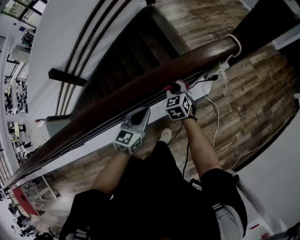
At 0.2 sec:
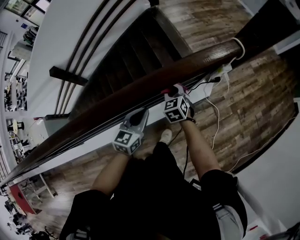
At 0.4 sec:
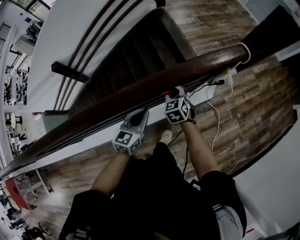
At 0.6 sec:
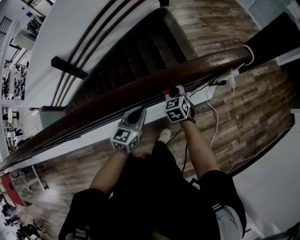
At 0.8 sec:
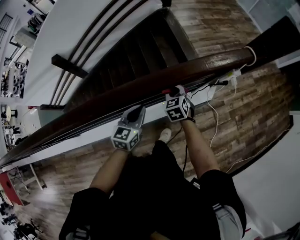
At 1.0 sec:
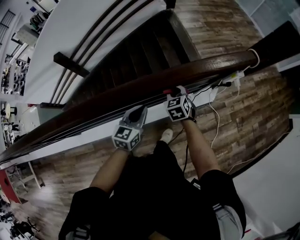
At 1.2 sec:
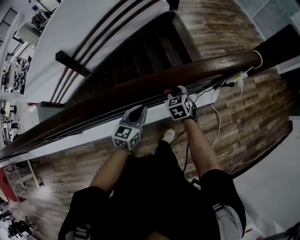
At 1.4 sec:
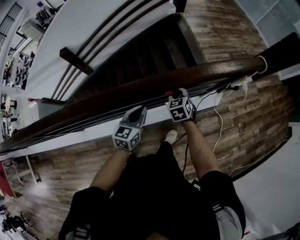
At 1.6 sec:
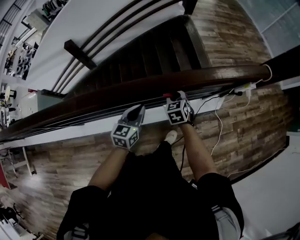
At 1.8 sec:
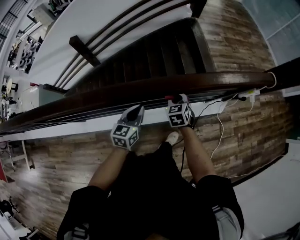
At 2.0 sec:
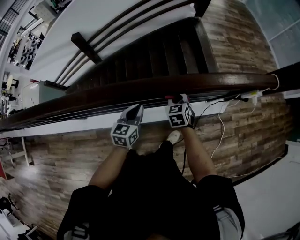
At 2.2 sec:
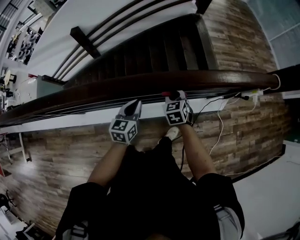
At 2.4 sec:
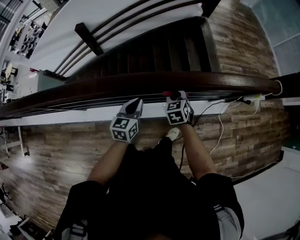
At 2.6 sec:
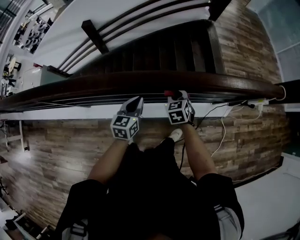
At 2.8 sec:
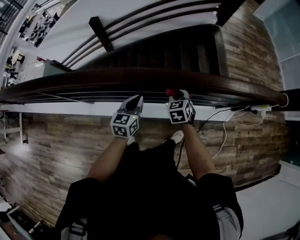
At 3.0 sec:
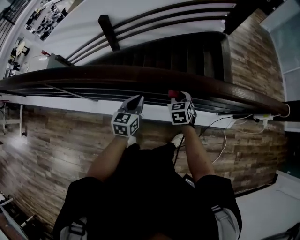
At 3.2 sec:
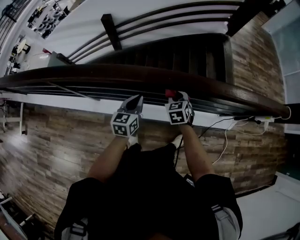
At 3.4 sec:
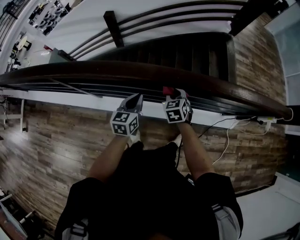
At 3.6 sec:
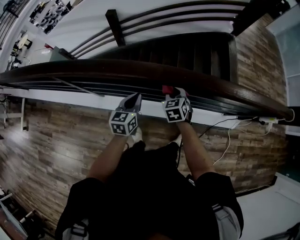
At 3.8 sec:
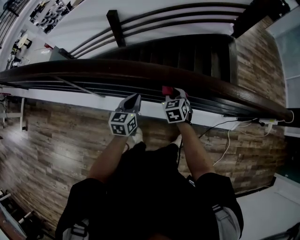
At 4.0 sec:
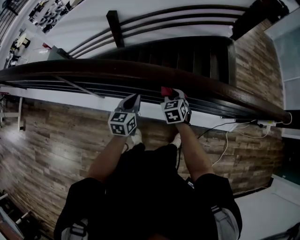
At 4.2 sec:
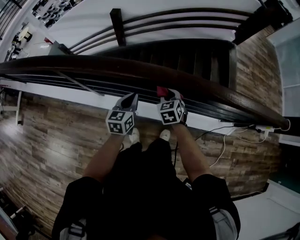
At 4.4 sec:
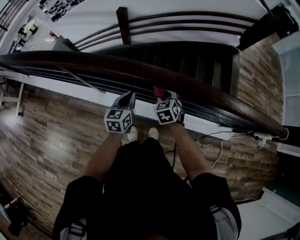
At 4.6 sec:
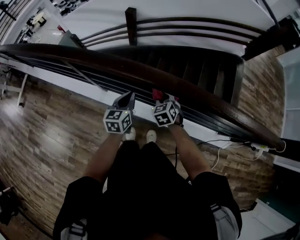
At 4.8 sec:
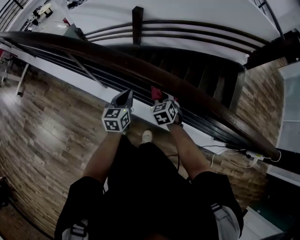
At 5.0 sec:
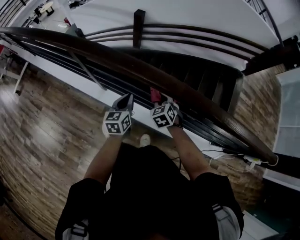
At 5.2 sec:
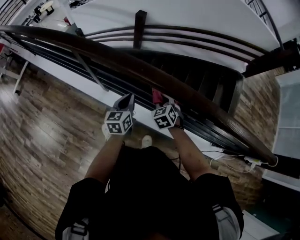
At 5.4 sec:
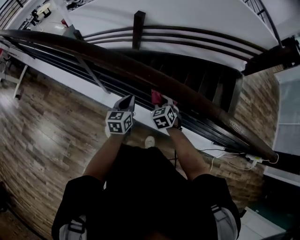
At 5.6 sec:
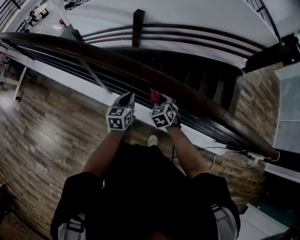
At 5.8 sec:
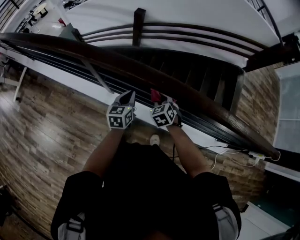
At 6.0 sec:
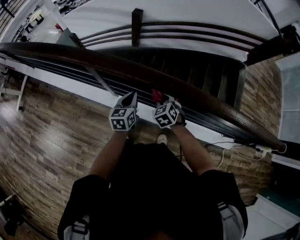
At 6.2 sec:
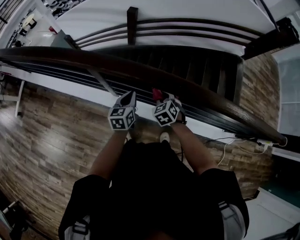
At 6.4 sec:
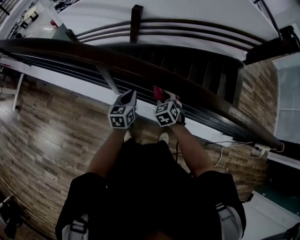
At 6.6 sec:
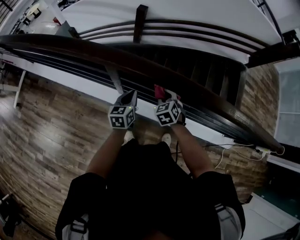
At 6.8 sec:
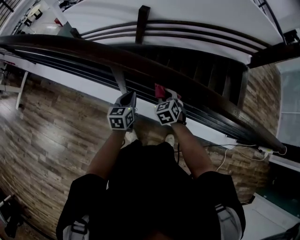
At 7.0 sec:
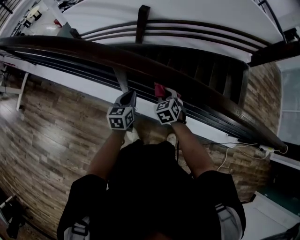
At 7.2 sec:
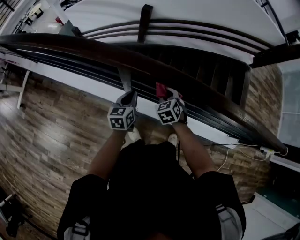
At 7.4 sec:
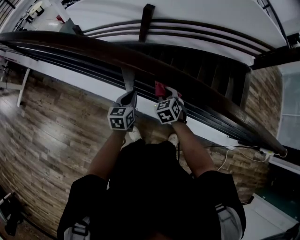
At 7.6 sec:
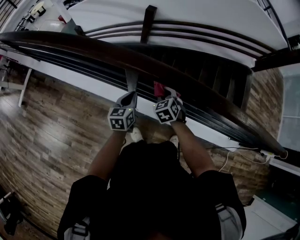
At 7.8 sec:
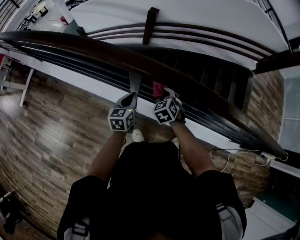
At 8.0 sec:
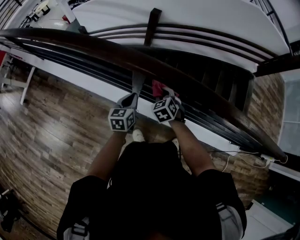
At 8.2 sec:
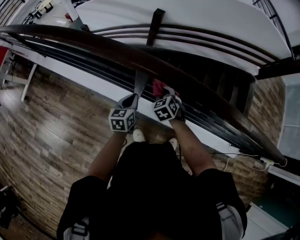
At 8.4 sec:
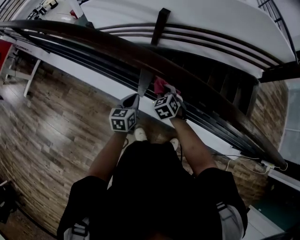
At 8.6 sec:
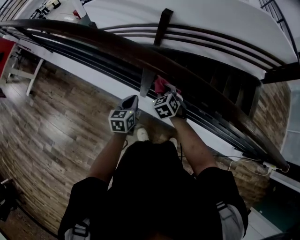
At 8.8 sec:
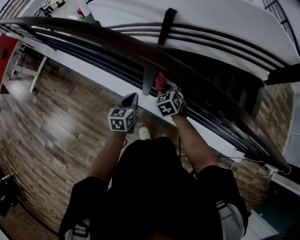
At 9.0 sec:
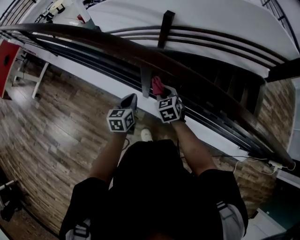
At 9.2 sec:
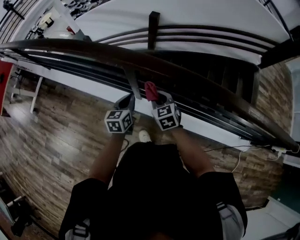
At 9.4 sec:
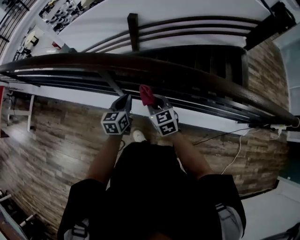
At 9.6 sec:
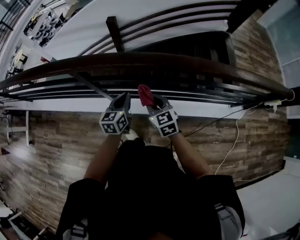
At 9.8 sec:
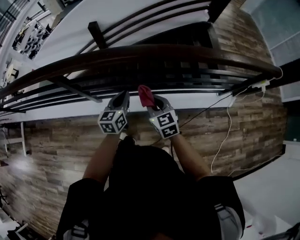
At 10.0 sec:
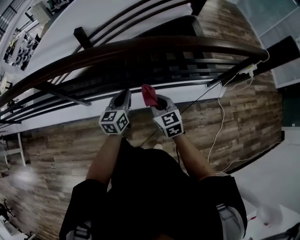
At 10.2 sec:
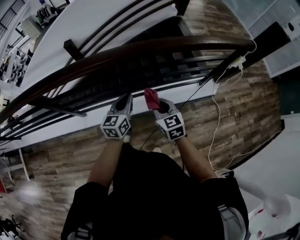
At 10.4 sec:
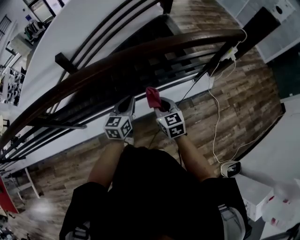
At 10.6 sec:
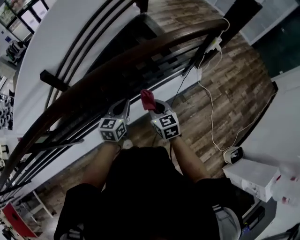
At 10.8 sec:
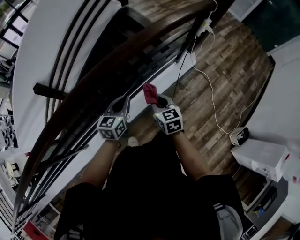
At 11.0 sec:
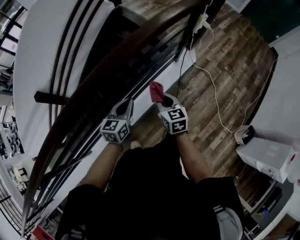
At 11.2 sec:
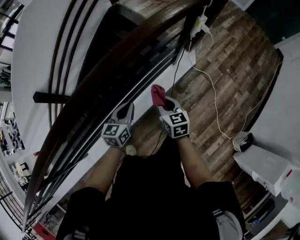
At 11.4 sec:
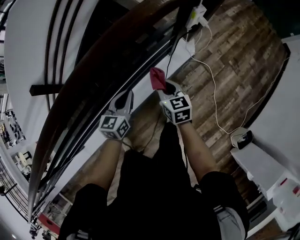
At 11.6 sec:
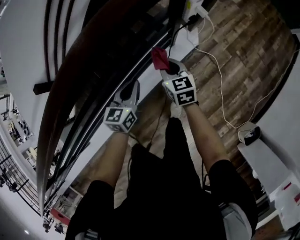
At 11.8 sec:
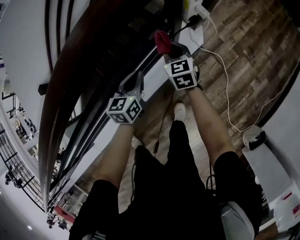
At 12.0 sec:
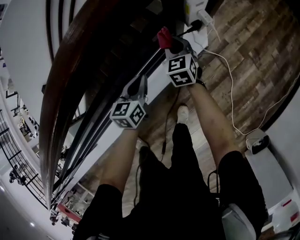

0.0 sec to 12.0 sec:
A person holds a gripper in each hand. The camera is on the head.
0.0 sec to 1.6 sec: The right gripper moves to the left and backward, approximately 20 cm; the left gripper shifts about 20 cm to the left.
1.6 sec to 3.0 sec: The two grippers go roughly 15 cm to the left.
3.0 sec to 4.4 sec: The two grippers go some 15 cm to the left.
4.4 sec to 6.0 sec: Both grippers move to the left, about 15 cm.
6.0 sec to 7.6 sec: Both grippers move to the left, roughly 15 cm.
7.6 sec to 9.0 sec: The grippers both shift to the left by about 10 cm.
9.0 sec to 10.4 sec: The pair of grippers is taken roughly 50 cm. The left gripper changes its angle by approximately 50 degrees, while the right gripper turns by roughly 50 degrees.
10.4 sec to 12.0 sec: The left gripper moves to the right, forward and downward, about 40 cm, and rotates approximately 20 degrees. The right gripper is displaced forward, to the right and downward by approximately 50 cm, and rotates roughly 30 degrees.

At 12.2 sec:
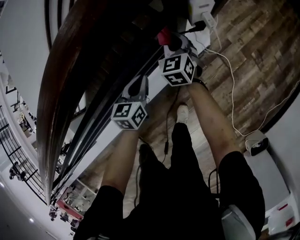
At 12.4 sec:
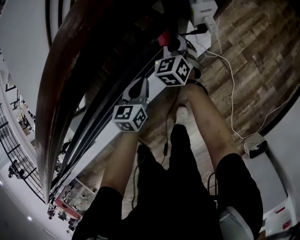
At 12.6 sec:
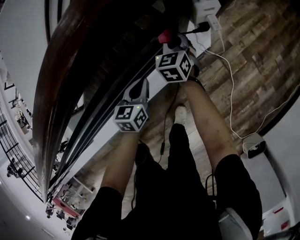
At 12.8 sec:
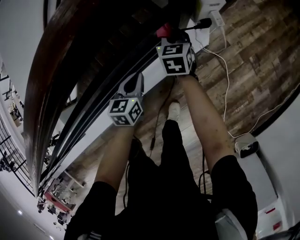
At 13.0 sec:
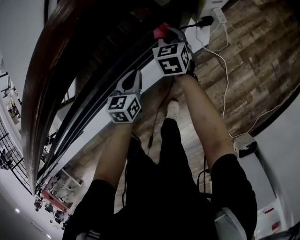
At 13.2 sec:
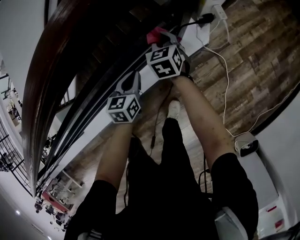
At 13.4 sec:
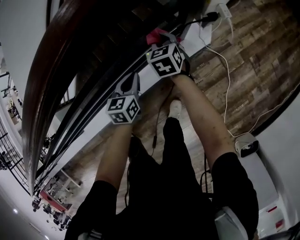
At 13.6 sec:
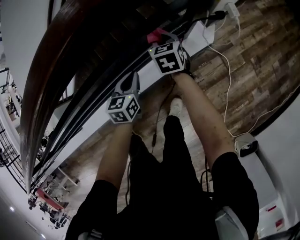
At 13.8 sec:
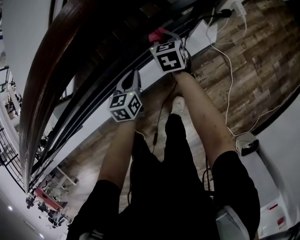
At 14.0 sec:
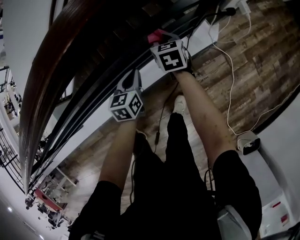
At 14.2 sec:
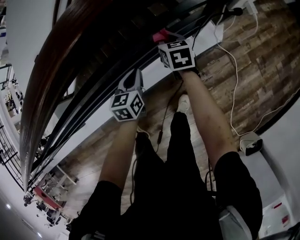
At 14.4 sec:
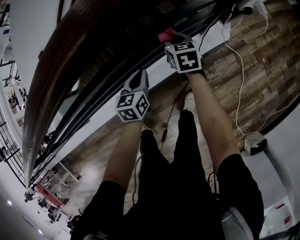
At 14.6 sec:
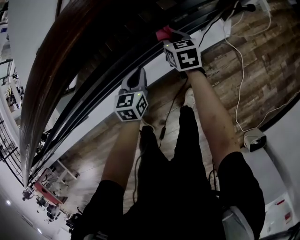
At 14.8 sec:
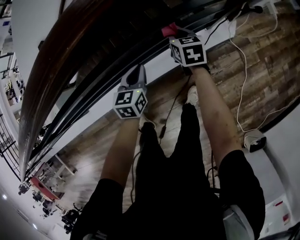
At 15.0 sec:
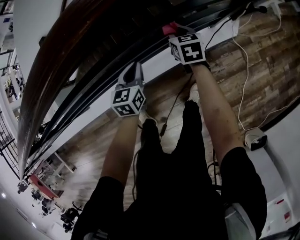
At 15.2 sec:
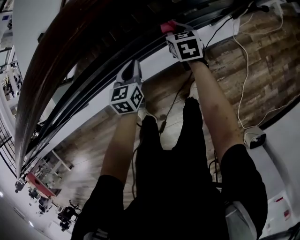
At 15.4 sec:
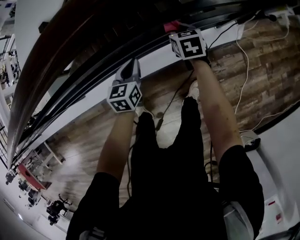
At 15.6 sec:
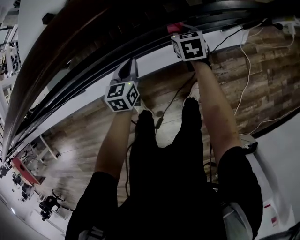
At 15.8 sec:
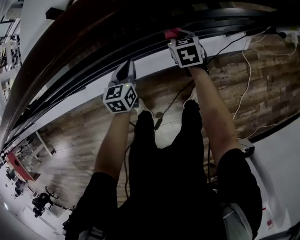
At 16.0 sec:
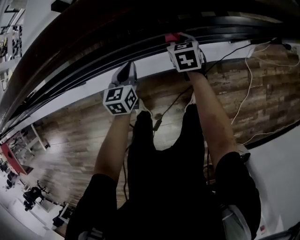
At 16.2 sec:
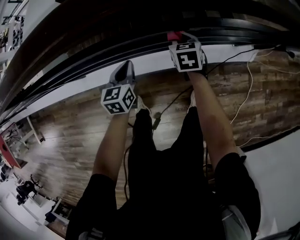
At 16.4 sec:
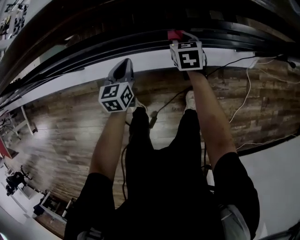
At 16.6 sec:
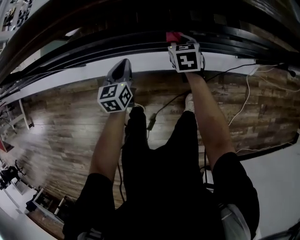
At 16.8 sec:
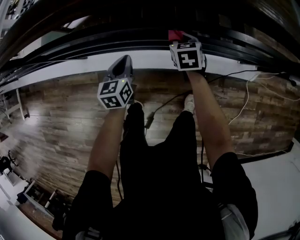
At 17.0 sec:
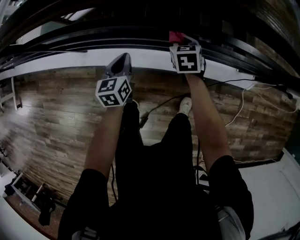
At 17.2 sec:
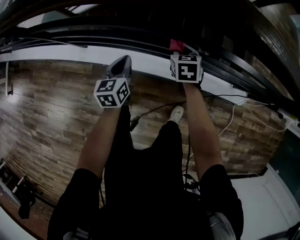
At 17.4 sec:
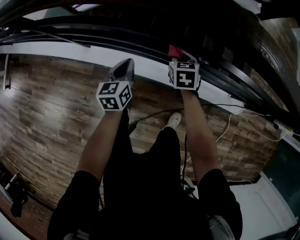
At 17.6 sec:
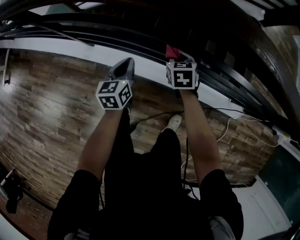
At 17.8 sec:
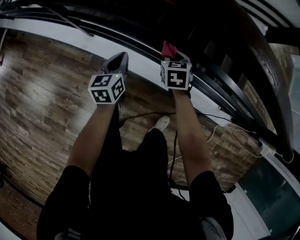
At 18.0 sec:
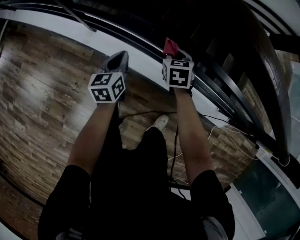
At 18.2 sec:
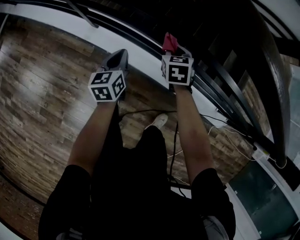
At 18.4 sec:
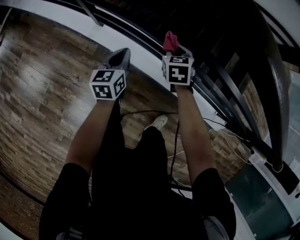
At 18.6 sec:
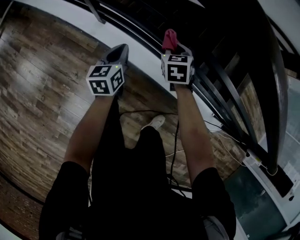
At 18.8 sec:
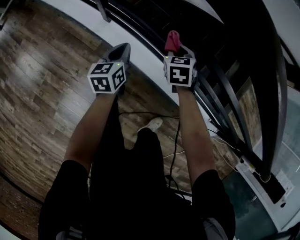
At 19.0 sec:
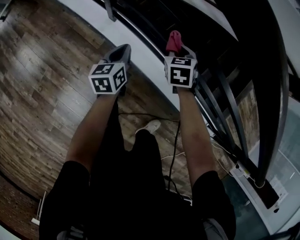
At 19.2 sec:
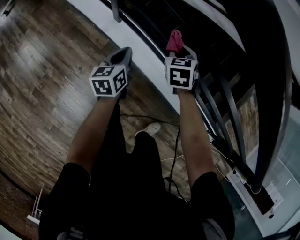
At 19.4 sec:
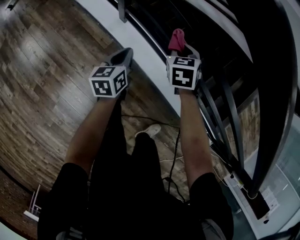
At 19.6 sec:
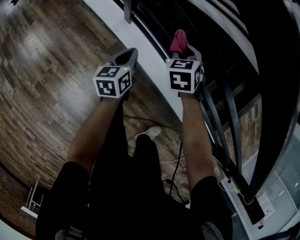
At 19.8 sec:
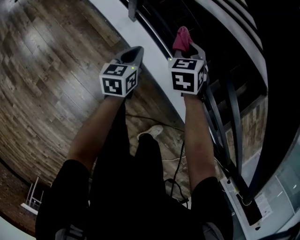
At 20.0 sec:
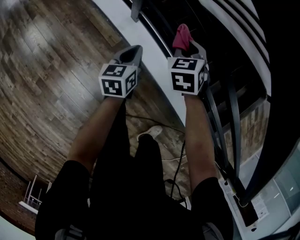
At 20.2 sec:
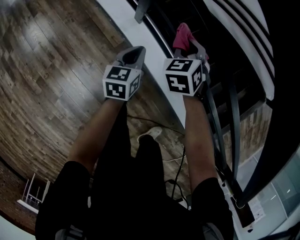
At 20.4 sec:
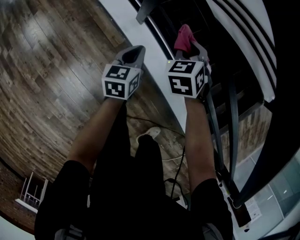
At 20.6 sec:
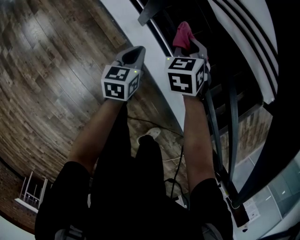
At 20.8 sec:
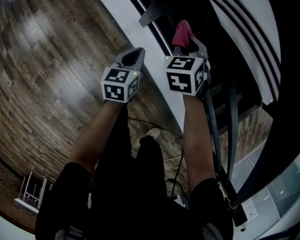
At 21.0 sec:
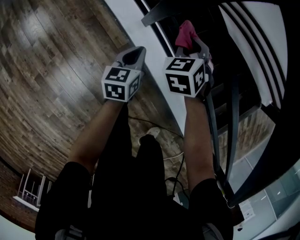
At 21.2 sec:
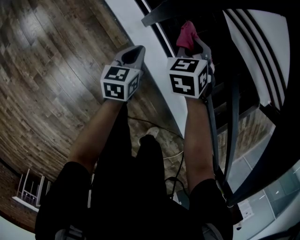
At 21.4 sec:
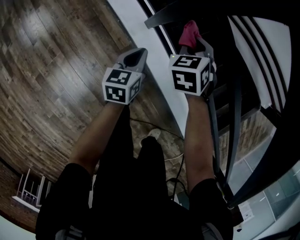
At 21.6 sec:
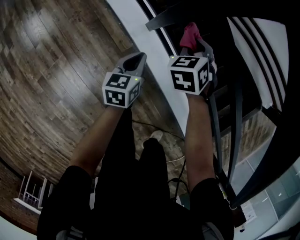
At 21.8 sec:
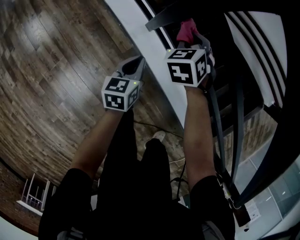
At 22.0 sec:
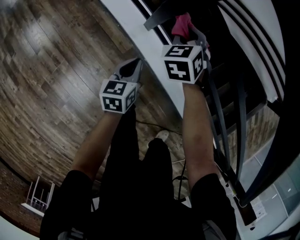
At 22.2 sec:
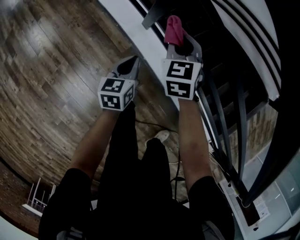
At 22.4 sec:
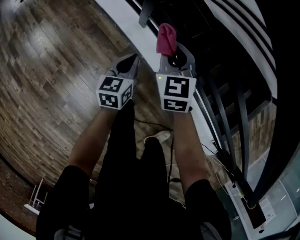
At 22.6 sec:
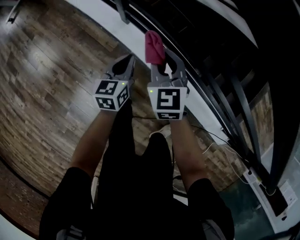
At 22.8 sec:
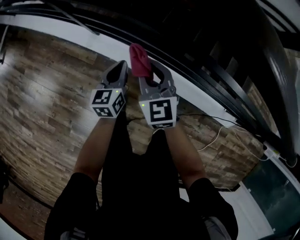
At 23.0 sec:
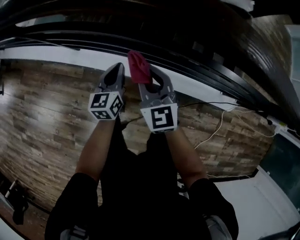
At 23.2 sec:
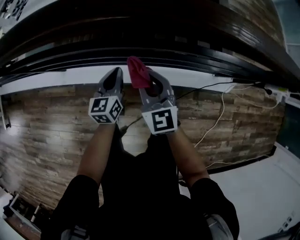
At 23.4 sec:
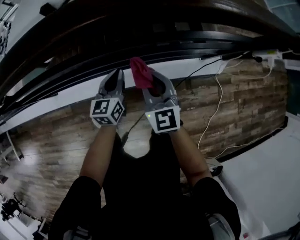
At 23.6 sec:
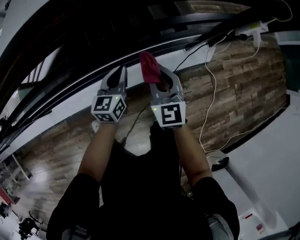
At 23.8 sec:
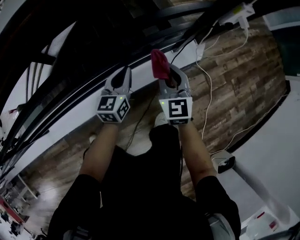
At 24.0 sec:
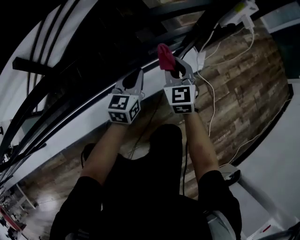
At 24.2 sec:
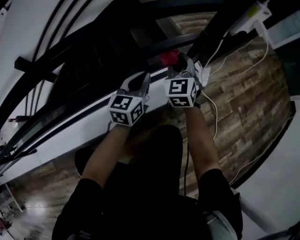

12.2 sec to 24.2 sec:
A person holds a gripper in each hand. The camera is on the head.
12.2 sec to 13.8 sec: Both grippers travel together to the left and backward, roughly 10 cm. The right gripper changes its angle by about 20 degrees.
13.8 sec to 15.2 sec: The grippers both shift to the left and backward by some 15 cm.
15.2 sec to 16.6 sec: The two grippers go some 20 cm to the left. The left gripper changes its angle by about 20 degrees, while the right gripper swivels some 20 degrees.
16.6 sec to 18.2 sec: The two grippers go some 20 cm to the left. The left gripper changes its angle by about 30 degrees, while the right gripper rotates some 30 degrees.
18.2 sec to 19.8 sec: The left gripper heads to the left, covering some 10 cm; the right gripper moves to the left, approximately 20 cm, and changes its angle by approximately 30 degrees.
19.8 sec to 21.2 sec: Both grippers move to the left, roughly 10 cm.
21.2 sec to 22.6 sec: The left gripper moves to the right and backward, some 10 cm. The right gripper goes roughly 15 cm backward, to the right and upward, and turns by roughly 40 degrees.
22.6 sec to 24.2 sec: The pair of grippers is taken some 80 cm. The left gripper rotates approximately 70 degrees. The right gripper swivels about 70 degrees.
